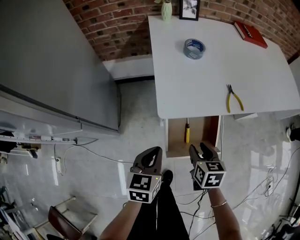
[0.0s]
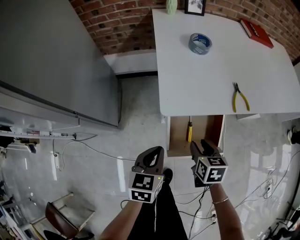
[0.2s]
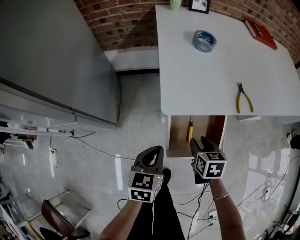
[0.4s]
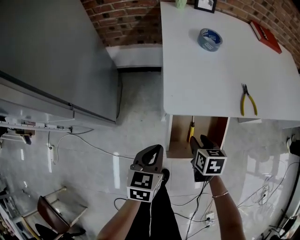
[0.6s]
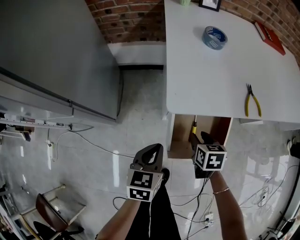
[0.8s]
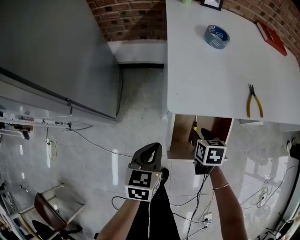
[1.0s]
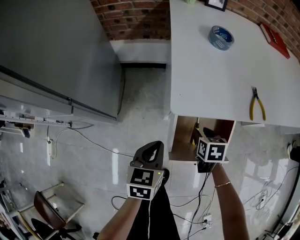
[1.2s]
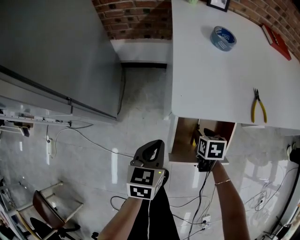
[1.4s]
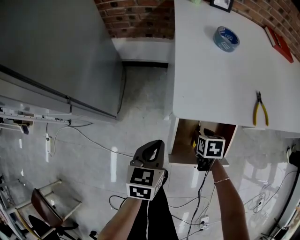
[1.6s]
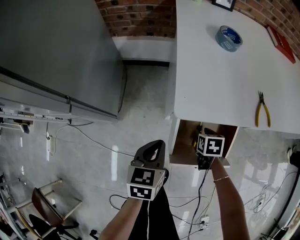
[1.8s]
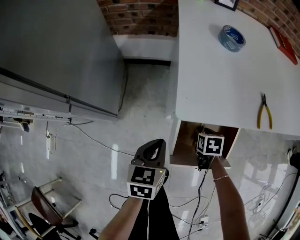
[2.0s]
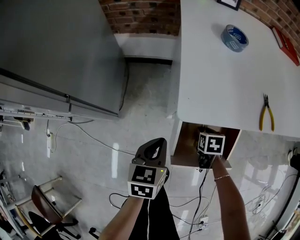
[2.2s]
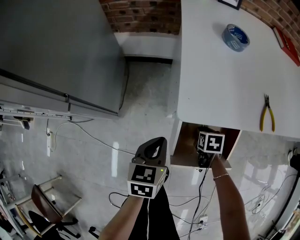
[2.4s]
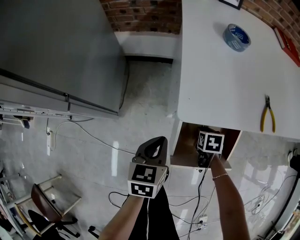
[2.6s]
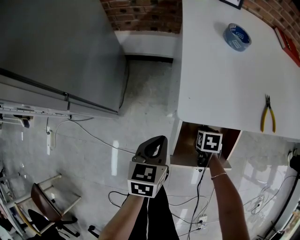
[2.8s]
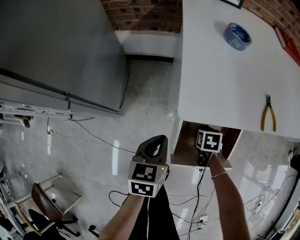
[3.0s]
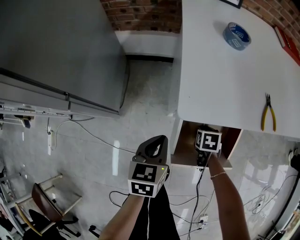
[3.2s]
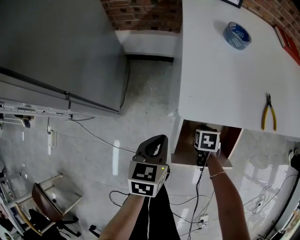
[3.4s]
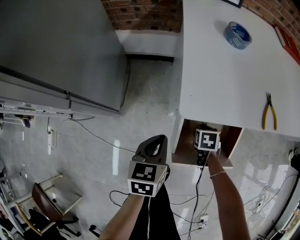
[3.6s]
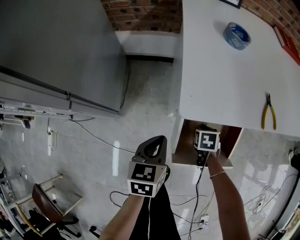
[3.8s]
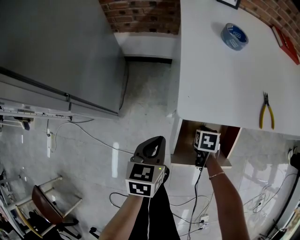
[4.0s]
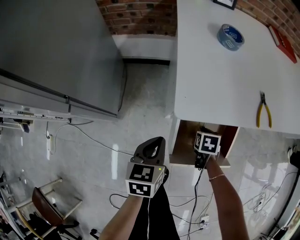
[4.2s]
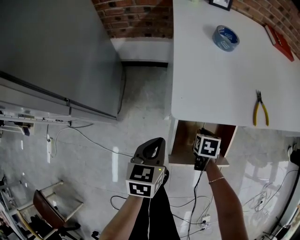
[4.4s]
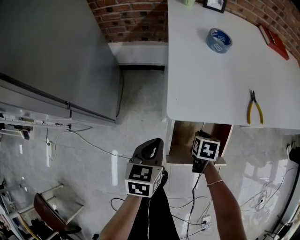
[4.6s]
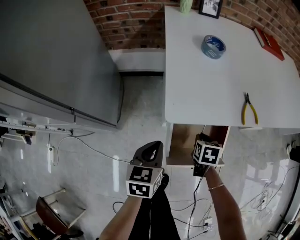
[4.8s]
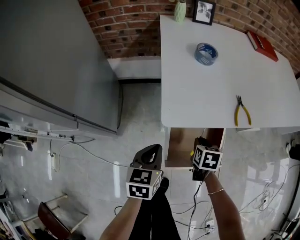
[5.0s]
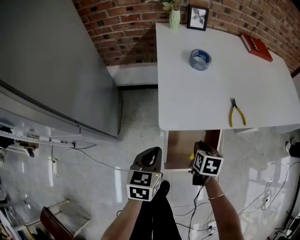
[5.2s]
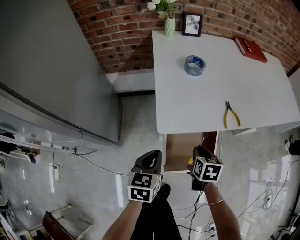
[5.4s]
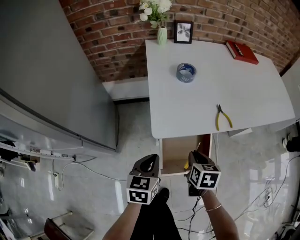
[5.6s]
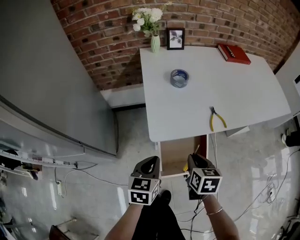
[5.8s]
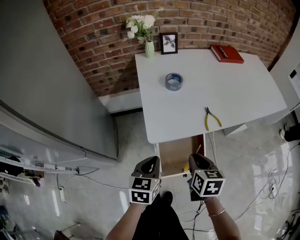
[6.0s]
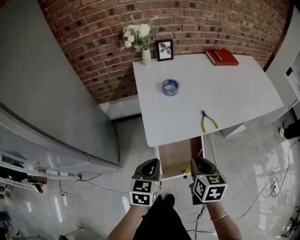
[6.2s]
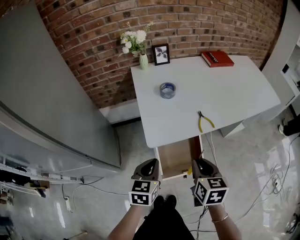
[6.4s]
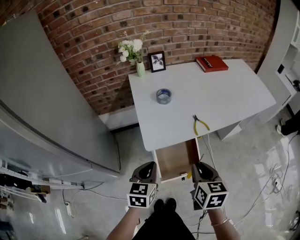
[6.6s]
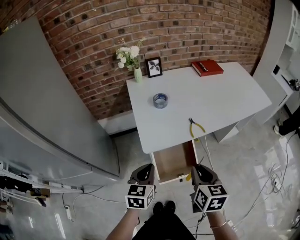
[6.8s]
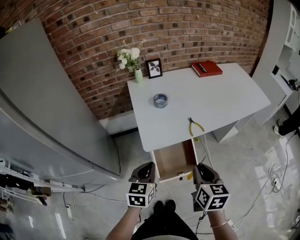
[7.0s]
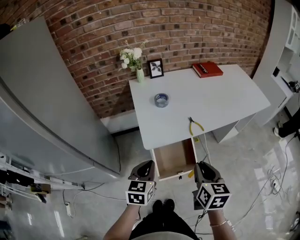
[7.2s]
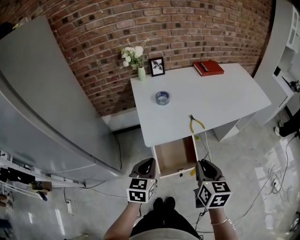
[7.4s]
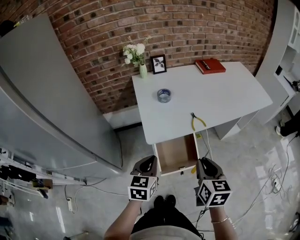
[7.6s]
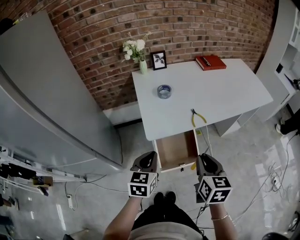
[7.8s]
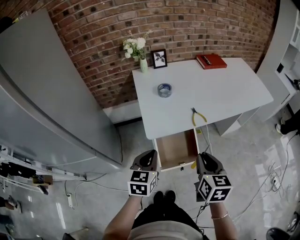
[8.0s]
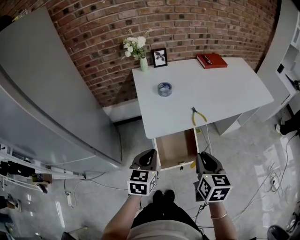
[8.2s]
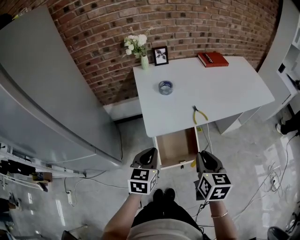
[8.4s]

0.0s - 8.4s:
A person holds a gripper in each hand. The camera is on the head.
0.0s - 1.4s: The left gripper heads downward, covering approximately 10 cm, while the right gripper travels downward and forward by about 15 cm.
1.4s - 2.8s: The right gripper moves downward, approximately 5 cm.
2.8s - 4.2s: The grippers make only small movements.
4.2s - 5.6s: The left gripper is displaced upward by some 10 cm. The right gripper moves upward, some 20 cm, and changes its angle by about 20 degrees.
5.6s - 7.0s: The right gripper goes approximately 25 cm upward and backward, and rotates about 20 degrees, while the left gripper travels upward by some 15 cm.
7.0s - 8.4s: The grippers make only small movements.

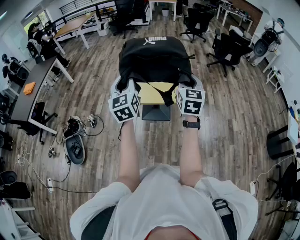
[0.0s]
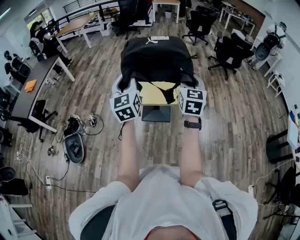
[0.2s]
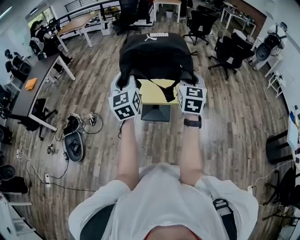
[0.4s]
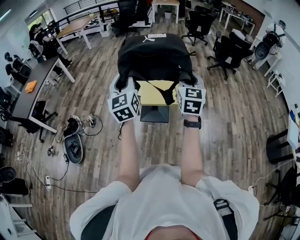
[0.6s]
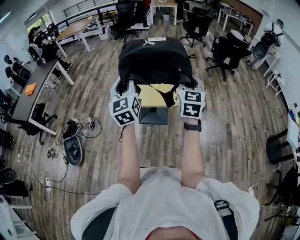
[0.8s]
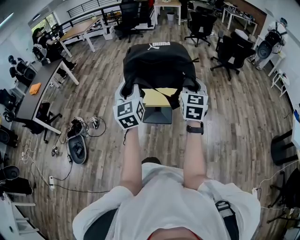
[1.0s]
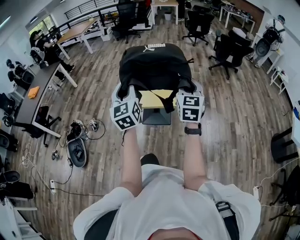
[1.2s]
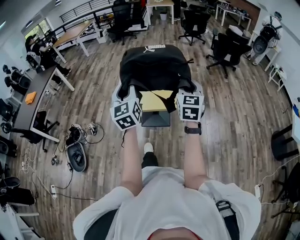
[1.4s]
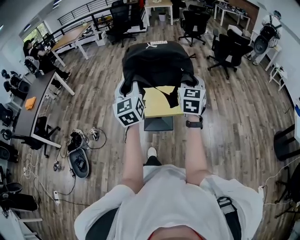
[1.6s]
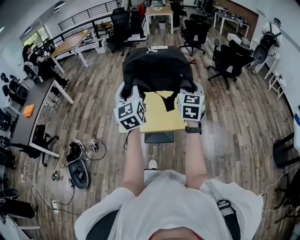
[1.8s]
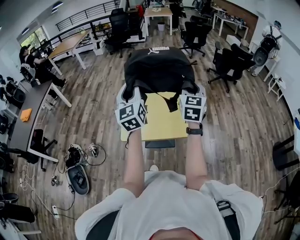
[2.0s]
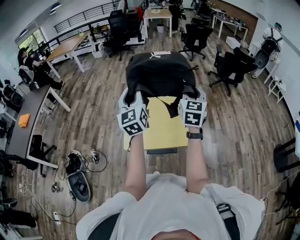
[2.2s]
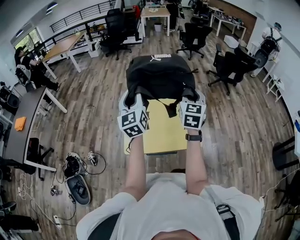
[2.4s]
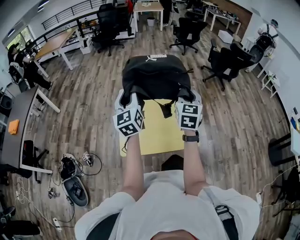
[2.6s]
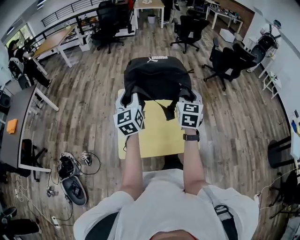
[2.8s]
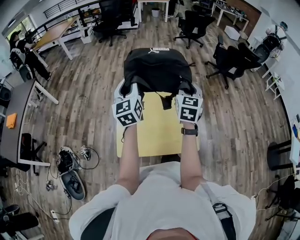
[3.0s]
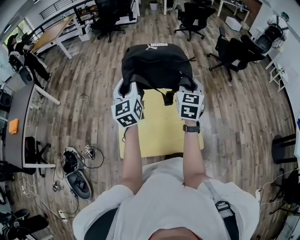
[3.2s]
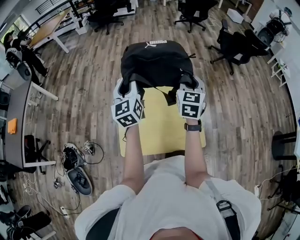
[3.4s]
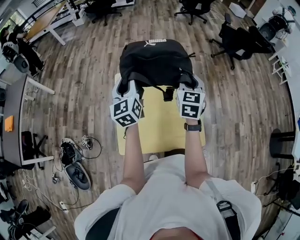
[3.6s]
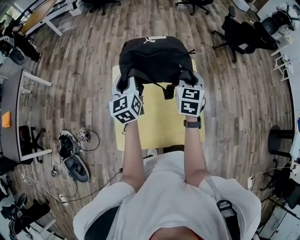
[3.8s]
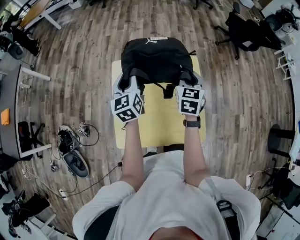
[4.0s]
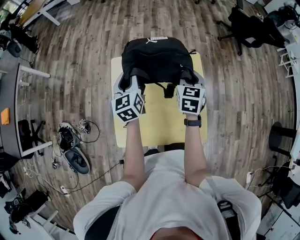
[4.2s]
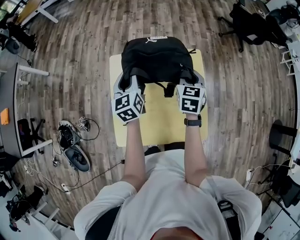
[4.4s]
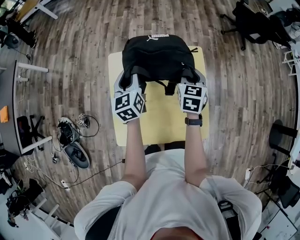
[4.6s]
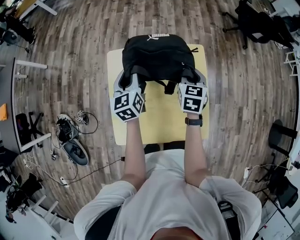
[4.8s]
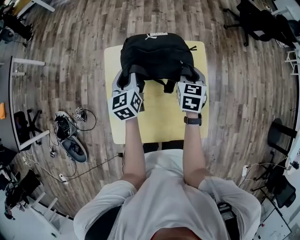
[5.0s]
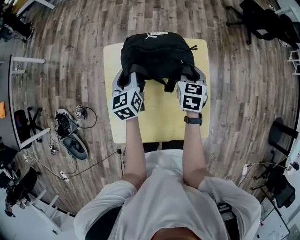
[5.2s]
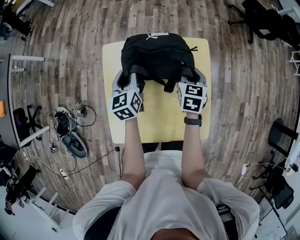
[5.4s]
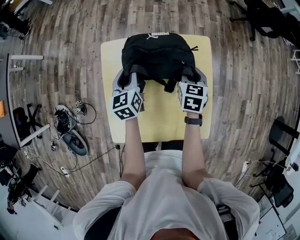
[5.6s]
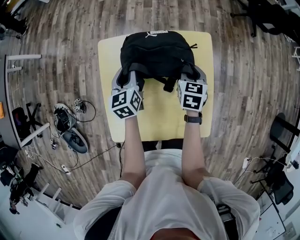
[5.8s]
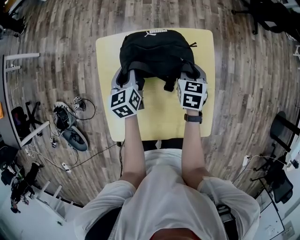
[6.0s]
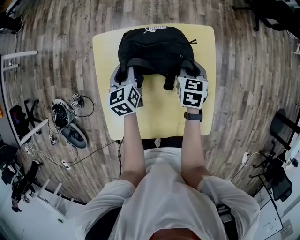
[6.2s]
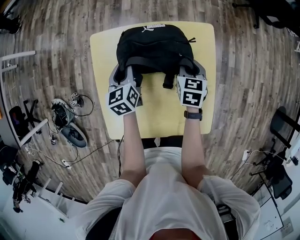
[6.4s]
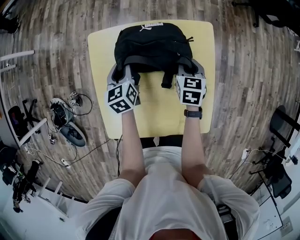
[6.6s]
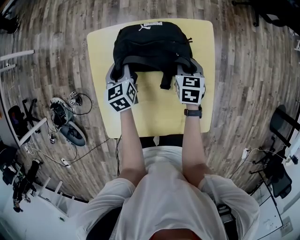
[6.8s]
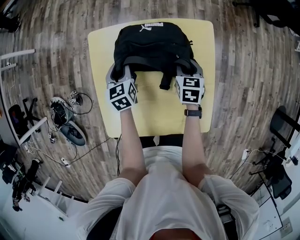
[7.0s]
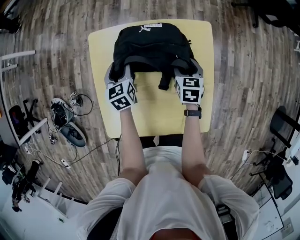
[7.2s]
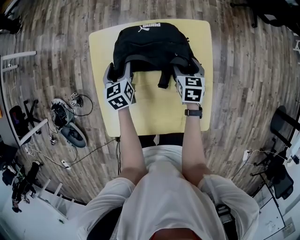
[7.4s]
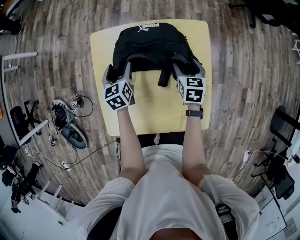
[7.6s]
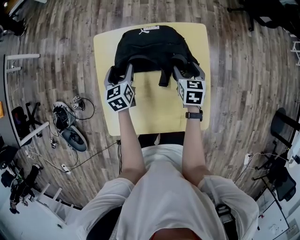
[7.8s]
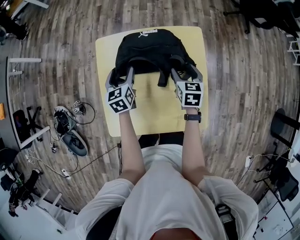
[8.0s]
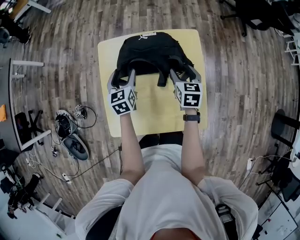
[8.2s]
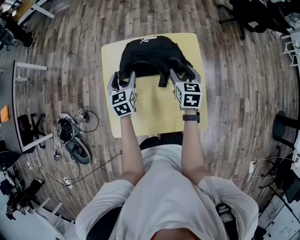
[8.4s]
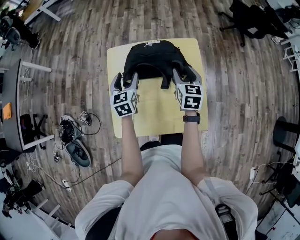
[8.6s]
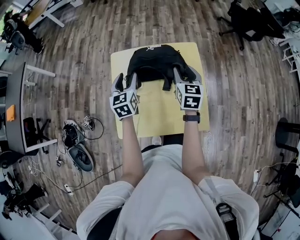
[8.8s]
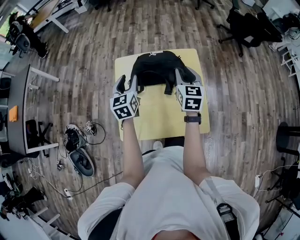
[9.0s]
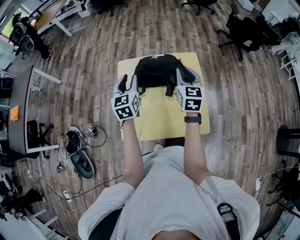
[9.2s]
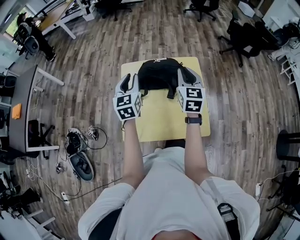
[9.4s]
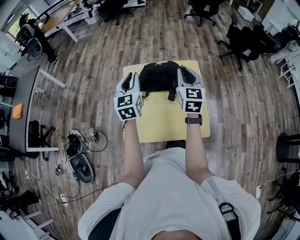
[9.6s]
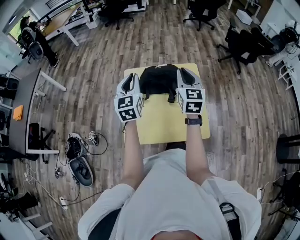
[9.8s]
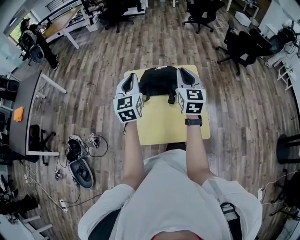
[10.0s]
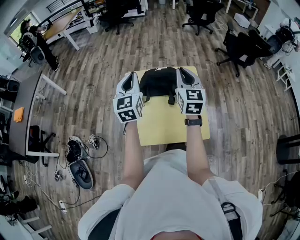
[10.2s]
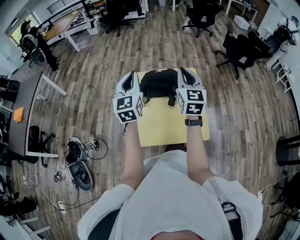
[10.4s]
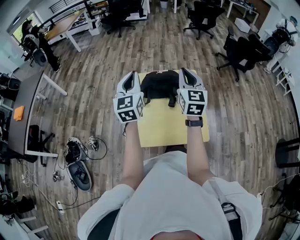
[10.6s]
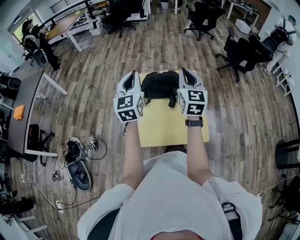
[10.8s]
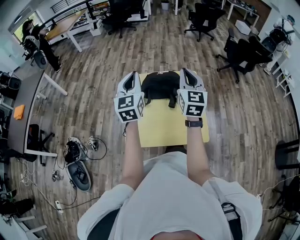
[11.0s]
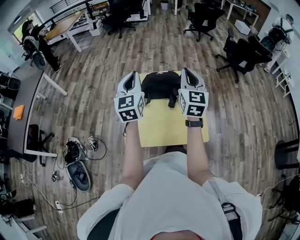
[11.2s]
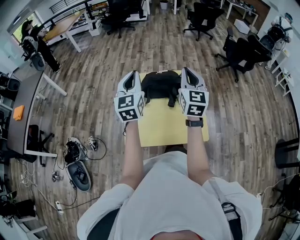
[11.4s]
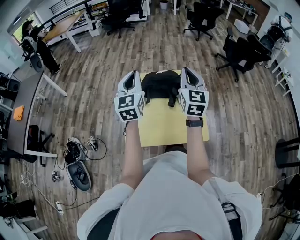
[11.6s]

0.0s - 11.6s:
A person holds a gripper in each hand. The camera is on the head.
0.0s - 1.4s: Both grippers move to the right, about 5 cm.
1.4s - 2.8s: Both grippers travel together forward, approximately 35 cm.
2.8s - 4.4s: The grippers both shift downward and forward by roughly 25 cm. The right gripper rotates approximately 20 degrees. Meanwhile the left gripper swivels about 20 degrees.
4.4s - 5.8s: Both grippers travel together downward, roughly 10 cm.
5.8s - 7.2s: The grippers both shift downward by approximately 10 cm. The right gripper opens.
7.2s - 8.8s: The right gripper goes about 20 cm upward, and changes its angle by roughly 20 degrees, while the left gripper is displaced upward and backward by some 20 cm.
8.8s - 10.2s: Both grippers move upward, roughly 20 cm. The left gripper rotates roughly 20 degrees, and closes up, while the right gripper turns by approximately 20 degrees, and closes up.
10.2s - 11.6s: The grippers stay close to where they were, moving slightly.

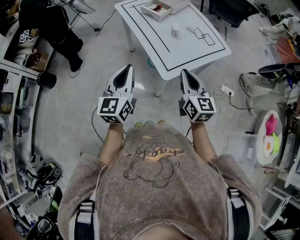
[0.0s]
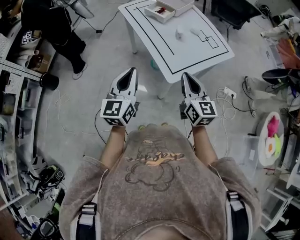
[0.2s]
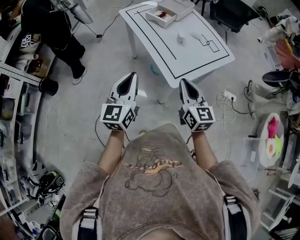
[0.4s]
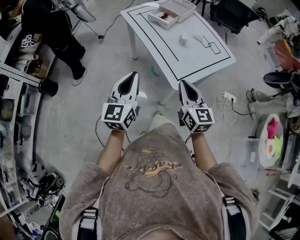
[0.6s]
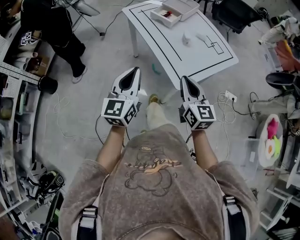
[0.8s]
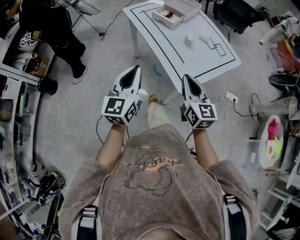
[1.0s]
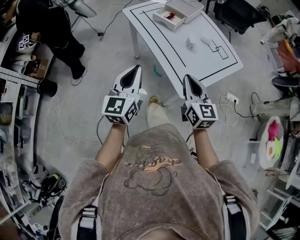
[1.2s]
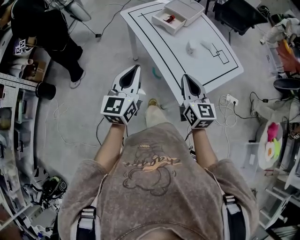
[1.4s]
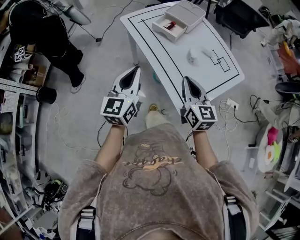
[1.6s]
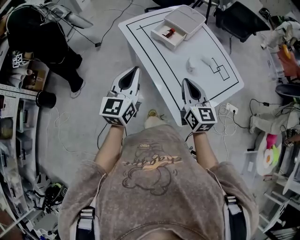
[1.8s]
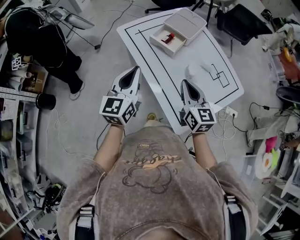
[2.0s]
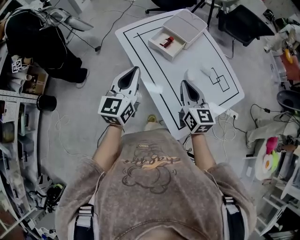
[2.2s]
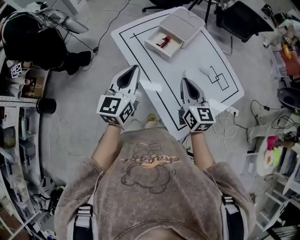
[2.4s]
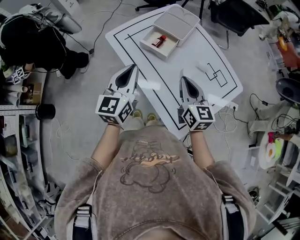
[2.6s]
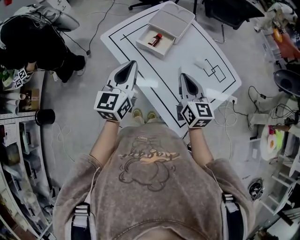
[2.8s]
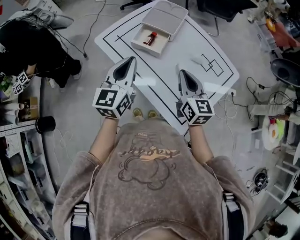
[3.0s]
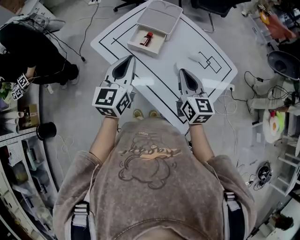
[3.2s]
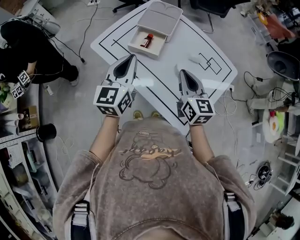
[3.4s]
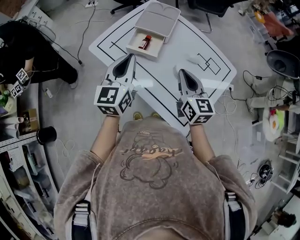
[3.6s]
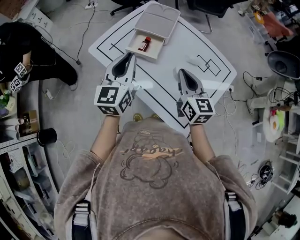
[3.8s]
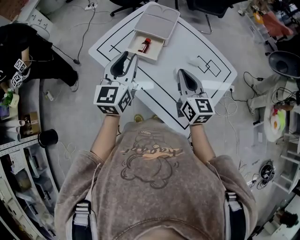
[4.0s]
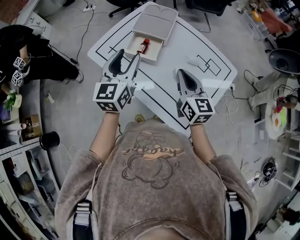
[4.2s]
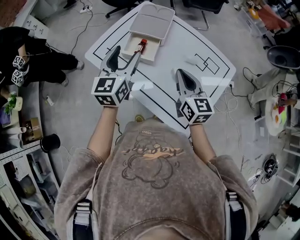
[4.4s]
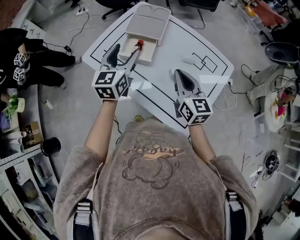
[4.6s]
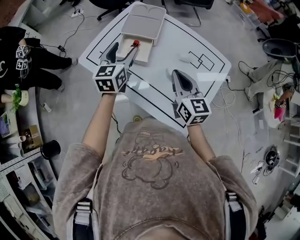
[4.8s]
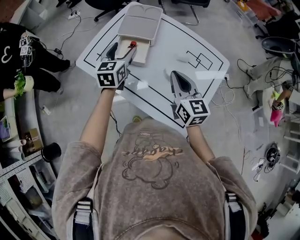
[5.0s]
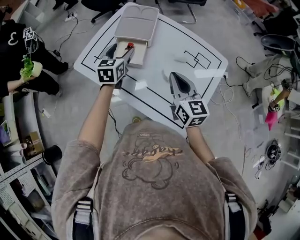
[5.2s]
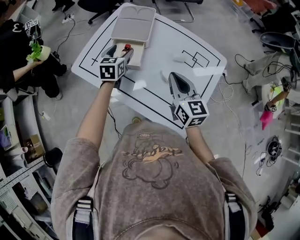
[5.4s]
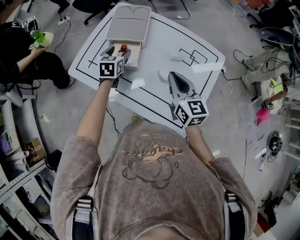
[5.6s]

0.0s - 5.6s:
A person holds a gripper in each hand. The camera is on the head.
0.0s - 1.4s: The grippers both shift forward and to the left by about 15 cm.
1.4s - 2.8s: The grippers both shift forward by approximately 20 cm.
2.8s - 4.2s: The left gripper is displaced forward by about 10 cm, and opens.
4.2s - 5.6s: The left gripper goes approximately 25 cm downward and forward, and points its fingers some 30 degrees further downward.
